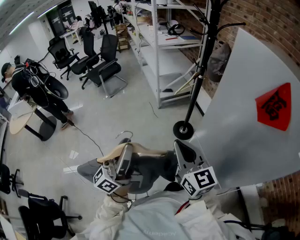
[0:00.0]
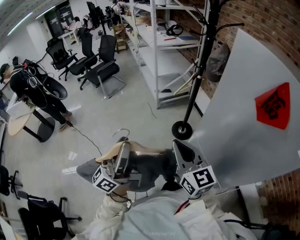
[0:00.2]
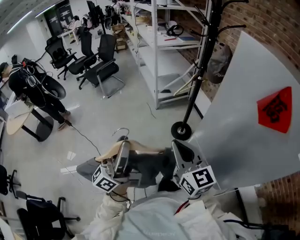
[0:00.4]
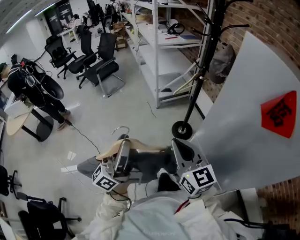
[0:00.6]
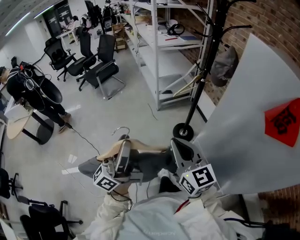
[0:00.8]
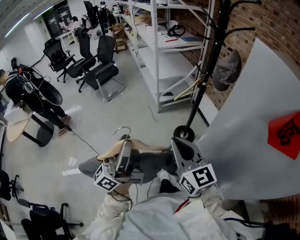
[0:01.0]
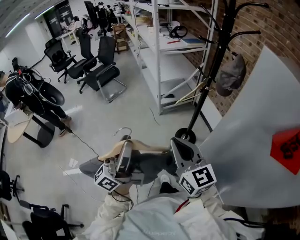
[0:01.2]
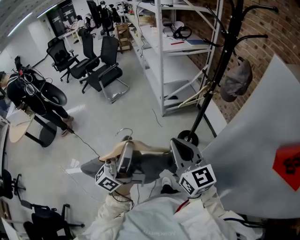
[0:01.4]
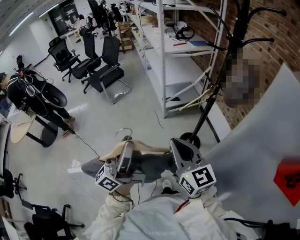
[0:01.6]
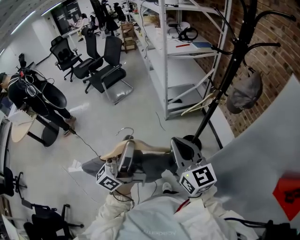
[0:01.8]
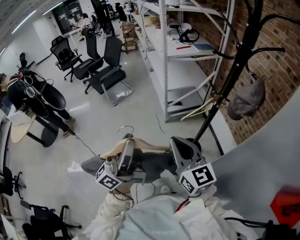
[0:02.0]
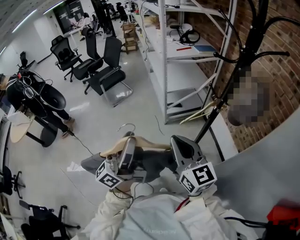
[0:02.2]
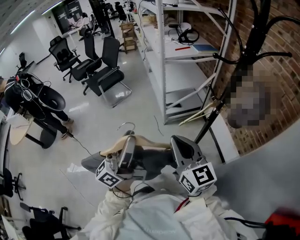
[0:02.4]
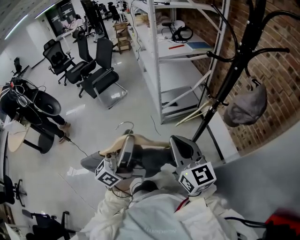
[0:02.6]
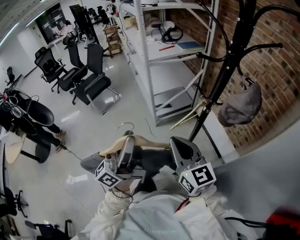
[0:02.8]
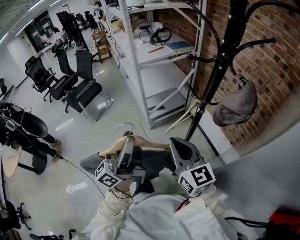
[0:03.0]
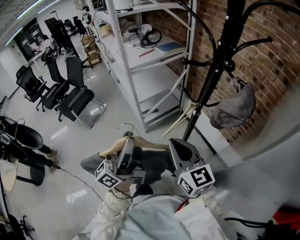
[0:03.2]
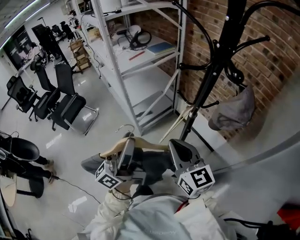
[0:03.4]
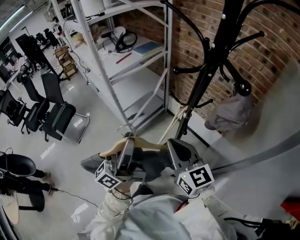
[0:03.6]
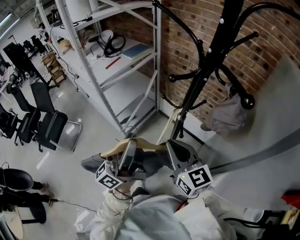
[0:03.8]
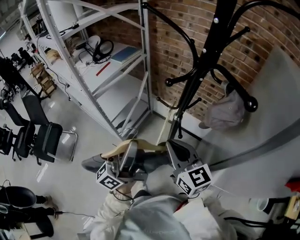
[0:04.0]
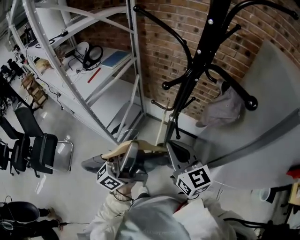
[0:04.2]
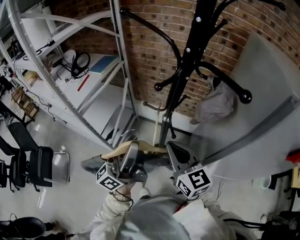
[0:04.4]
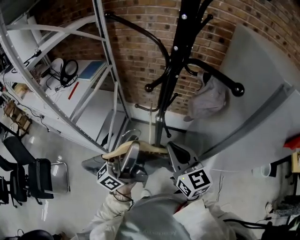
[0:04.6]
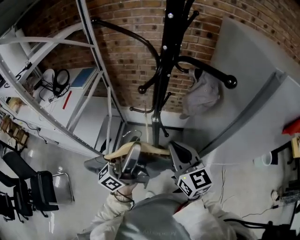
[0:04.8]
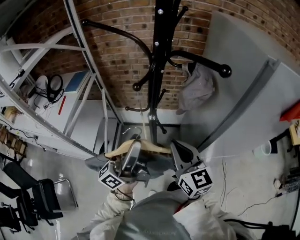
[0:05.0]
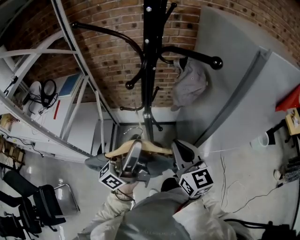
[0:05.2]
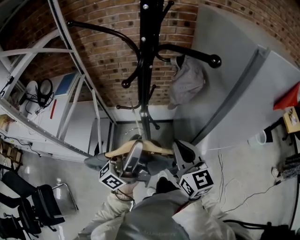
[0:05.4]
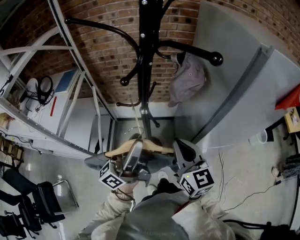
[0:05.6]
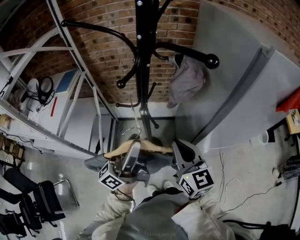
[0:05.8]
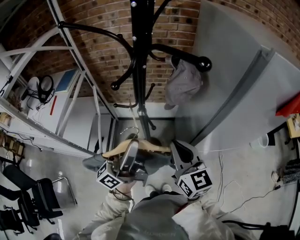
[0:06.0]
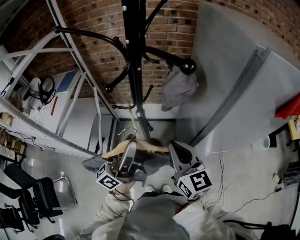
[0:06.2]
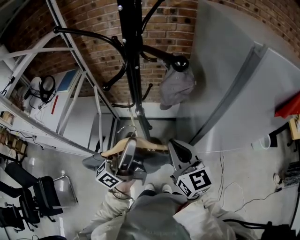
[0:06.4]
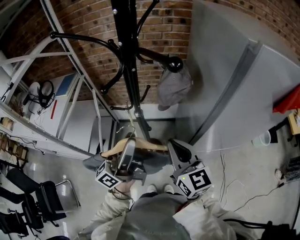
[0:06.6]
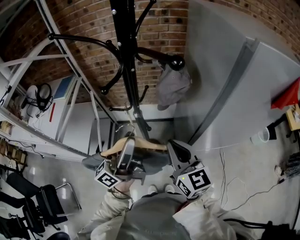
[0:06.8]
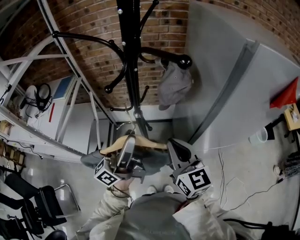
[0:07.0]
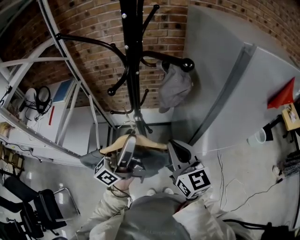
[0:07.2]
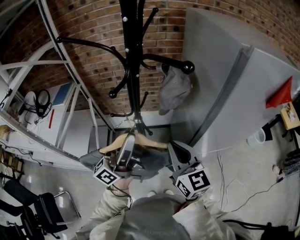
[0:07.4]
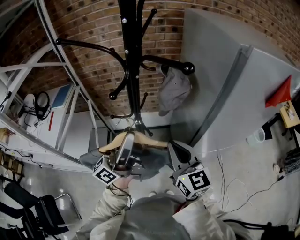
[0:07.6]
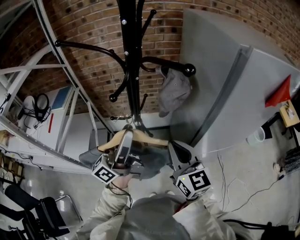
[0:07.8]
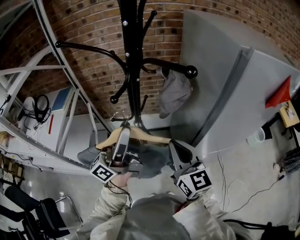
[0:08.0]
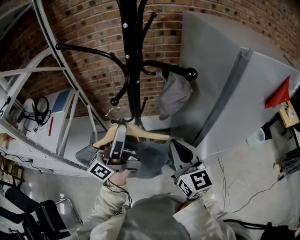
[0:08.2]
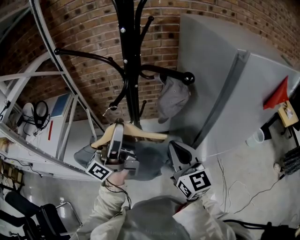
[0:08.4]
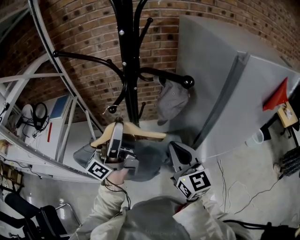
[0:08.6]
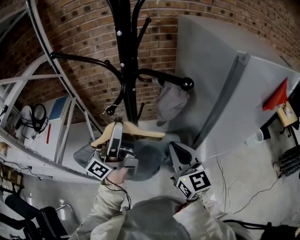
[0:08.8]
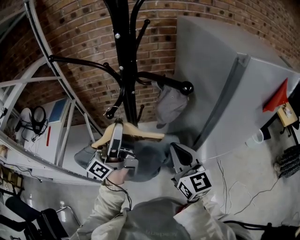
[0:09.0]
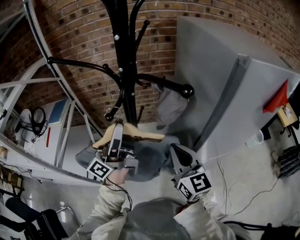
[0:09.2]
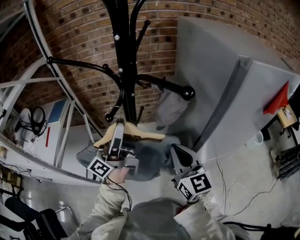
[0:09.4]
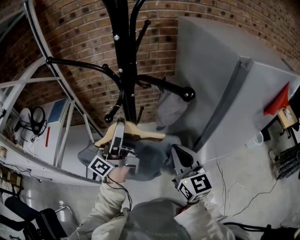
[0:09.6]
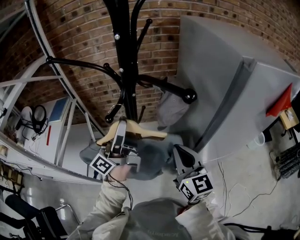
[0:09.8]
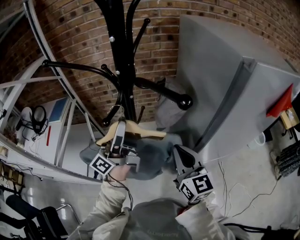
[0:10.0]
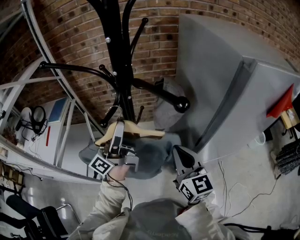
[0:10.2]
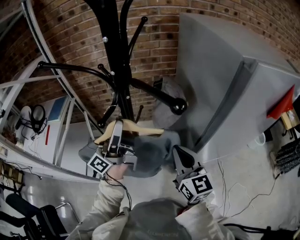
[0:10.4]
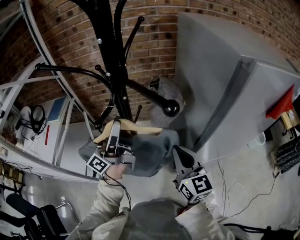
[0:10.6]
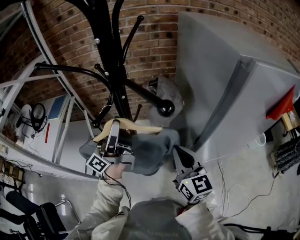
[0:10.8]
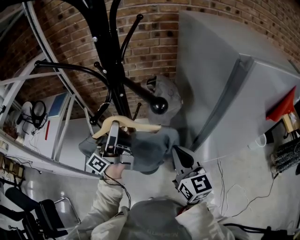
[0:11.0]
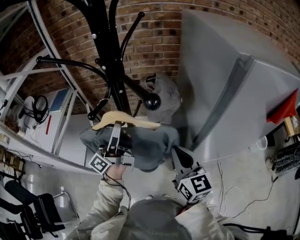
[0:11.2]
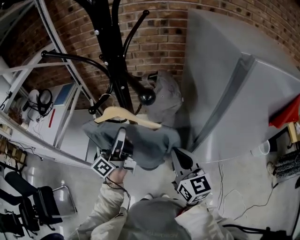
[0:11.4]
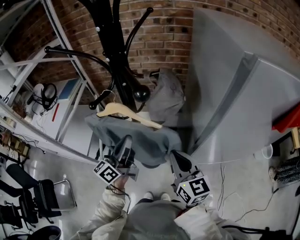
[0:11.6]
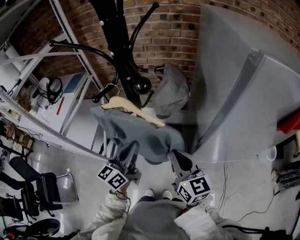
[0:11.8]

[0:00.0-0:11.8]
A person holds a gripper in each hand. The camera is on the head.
0:00.0 to 0:01.4: The two grippers go roughly 20 cm forward.
0:01.4 to 0:03.0: The two grippers go about 25 cm forward.
0:03.0 to 0:04.4: The left gripper ends up some 20 cm from where it was, and rotates roughly 40 degrees; the right gripper changes place by about 15 cm, and swivels roughly 40 degrees.
0:04.4 to 0:06.0: The right gripper changes place by roughly 10 cm, and swivels roughly 20 degrees, while the left gripper ends up about 5 cm from where it was, and rotates approximately 20 degrees.
0:06.0 to 0:07.4: There are only small adjustments of the grippers.
0:07.4 to 0:08.8: The left gripper shifts some 5 cm forward.
0:08.8 to 0:10.4: The left gripper moves forward, approximately 5 cm.
0:10.4 to 0:11.8: The right gripper heads downward, covering about 5 cm. Meanwhile the left gripper travels downward, backward and to the right by about 15 cm, tilts its fingers roughly 30 degrees downward, and closes its fingers.

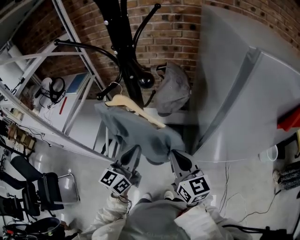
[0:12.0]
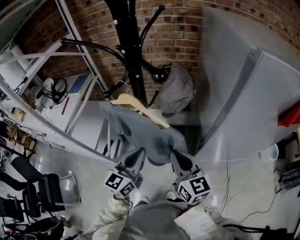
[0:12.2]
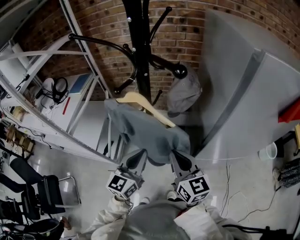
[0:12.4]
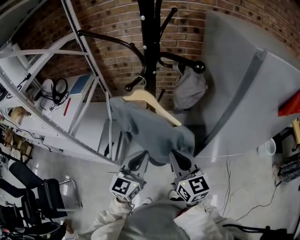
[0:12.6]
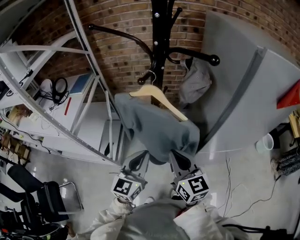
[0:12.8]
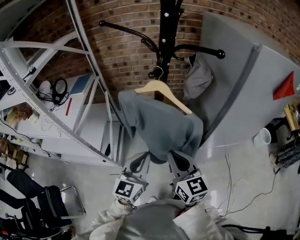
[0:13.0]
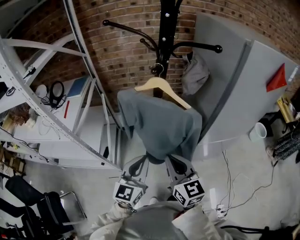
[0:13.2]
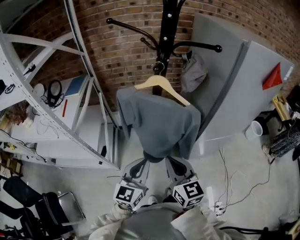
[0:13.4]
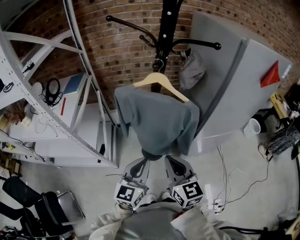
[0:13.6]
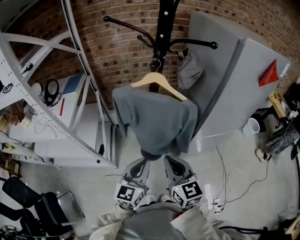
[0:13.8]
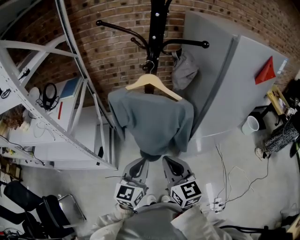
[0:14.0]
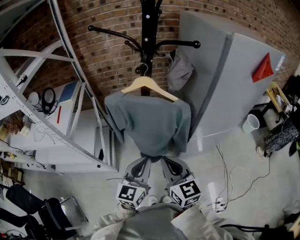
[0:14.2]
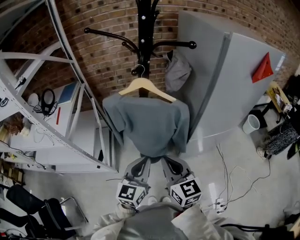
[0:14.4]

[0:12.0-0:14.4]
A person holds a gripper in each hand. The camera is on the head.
0:12.0 to 0:13.2: The right gripper heads to the left and backward, covering approximately 25 cm. Meanwhile the left gripper travels backward and to the left by roughly 20 cm.
0:13.2 to 0:14.4: The left gripper heads to the right, covering approximately 5 cm.

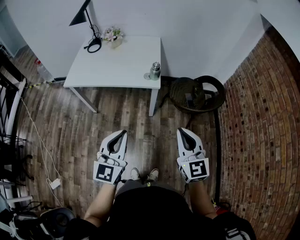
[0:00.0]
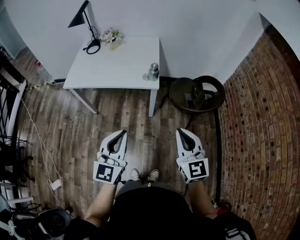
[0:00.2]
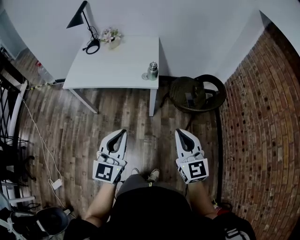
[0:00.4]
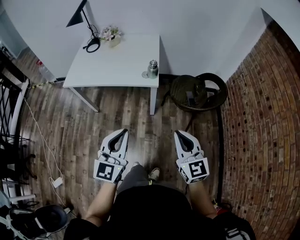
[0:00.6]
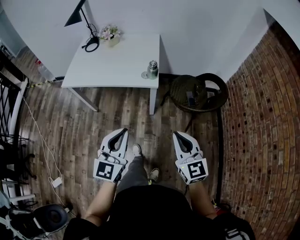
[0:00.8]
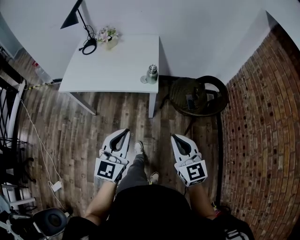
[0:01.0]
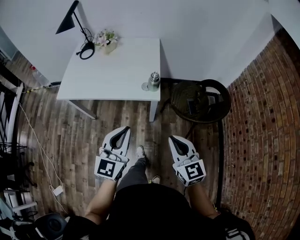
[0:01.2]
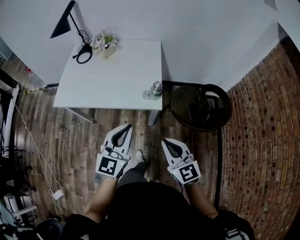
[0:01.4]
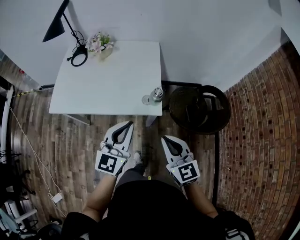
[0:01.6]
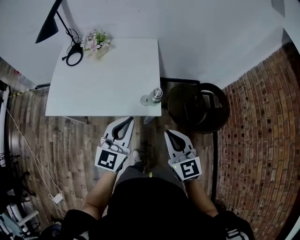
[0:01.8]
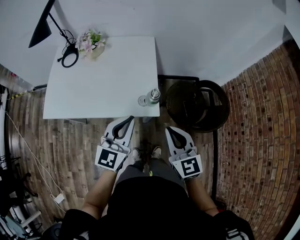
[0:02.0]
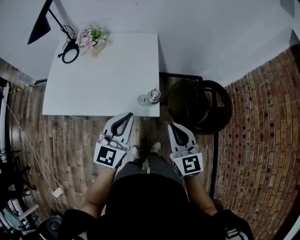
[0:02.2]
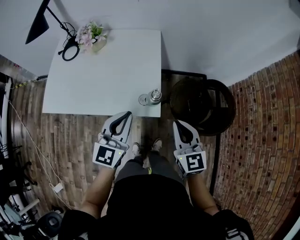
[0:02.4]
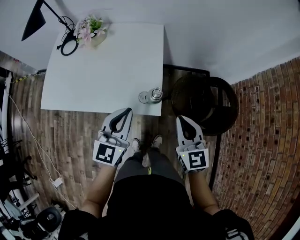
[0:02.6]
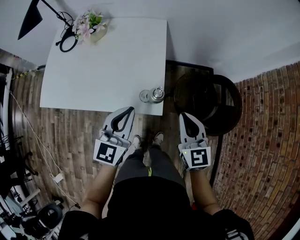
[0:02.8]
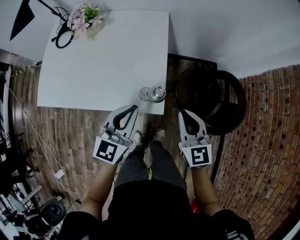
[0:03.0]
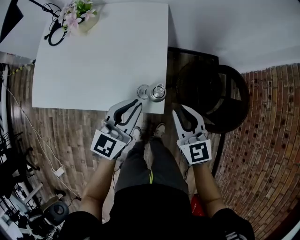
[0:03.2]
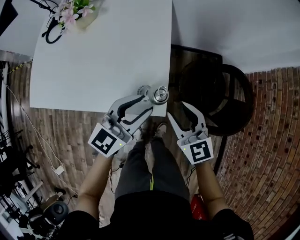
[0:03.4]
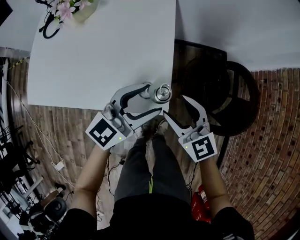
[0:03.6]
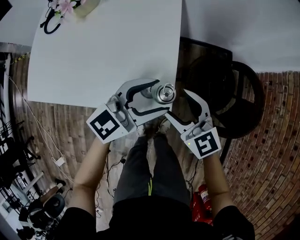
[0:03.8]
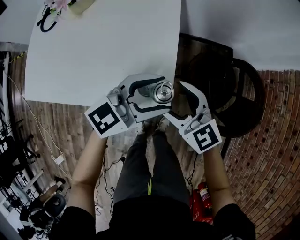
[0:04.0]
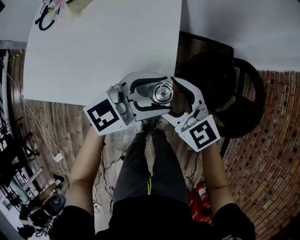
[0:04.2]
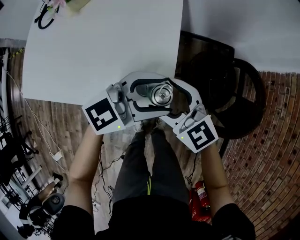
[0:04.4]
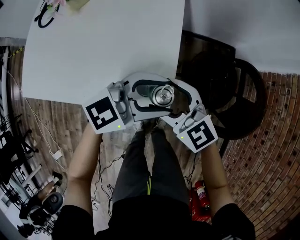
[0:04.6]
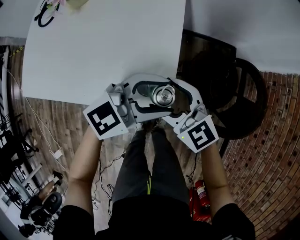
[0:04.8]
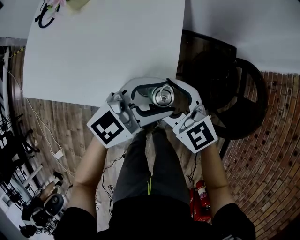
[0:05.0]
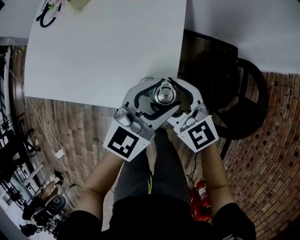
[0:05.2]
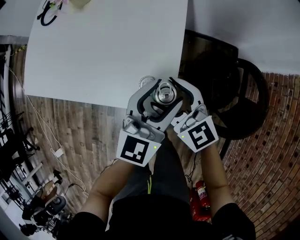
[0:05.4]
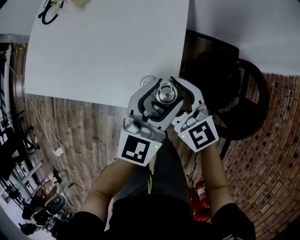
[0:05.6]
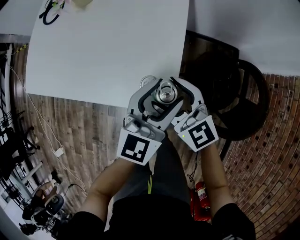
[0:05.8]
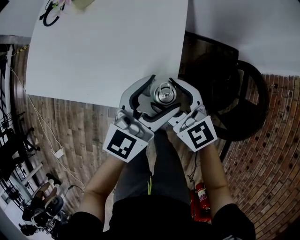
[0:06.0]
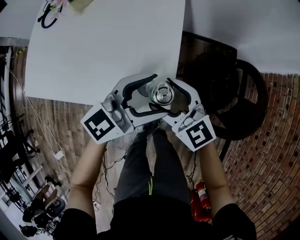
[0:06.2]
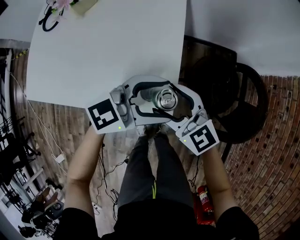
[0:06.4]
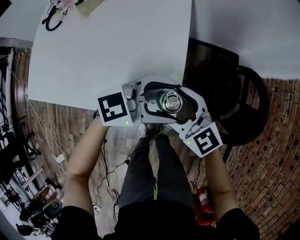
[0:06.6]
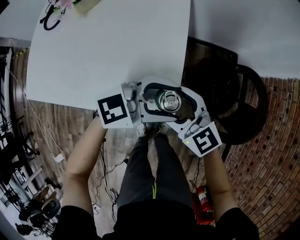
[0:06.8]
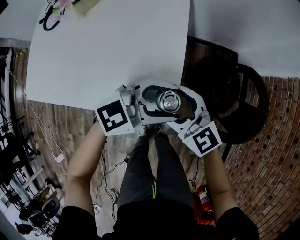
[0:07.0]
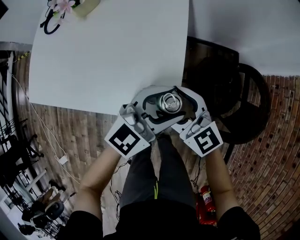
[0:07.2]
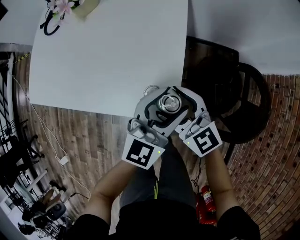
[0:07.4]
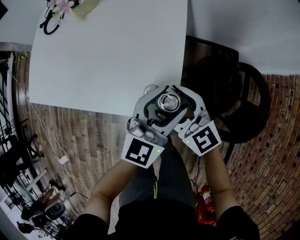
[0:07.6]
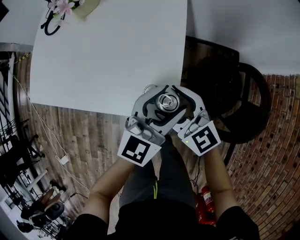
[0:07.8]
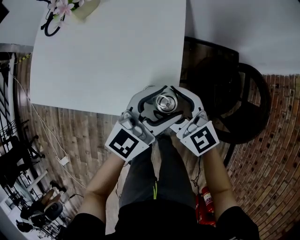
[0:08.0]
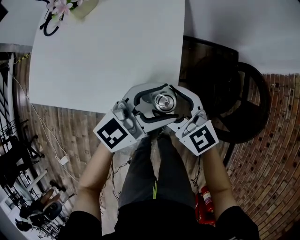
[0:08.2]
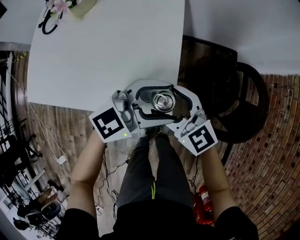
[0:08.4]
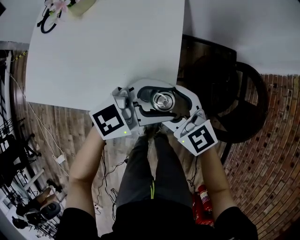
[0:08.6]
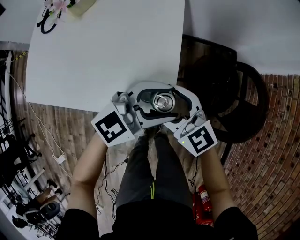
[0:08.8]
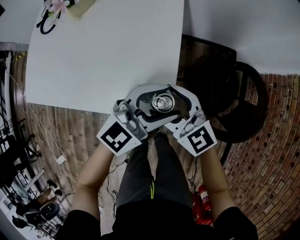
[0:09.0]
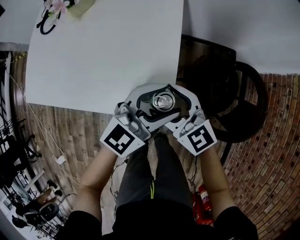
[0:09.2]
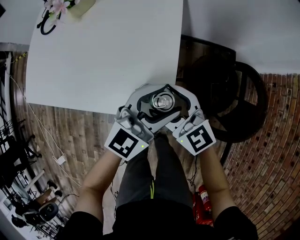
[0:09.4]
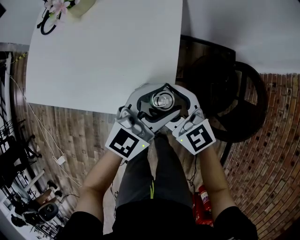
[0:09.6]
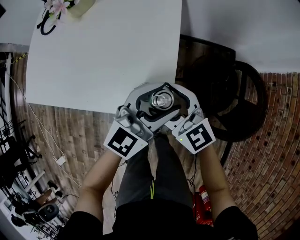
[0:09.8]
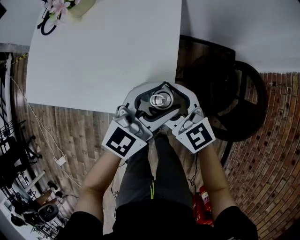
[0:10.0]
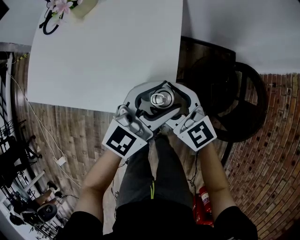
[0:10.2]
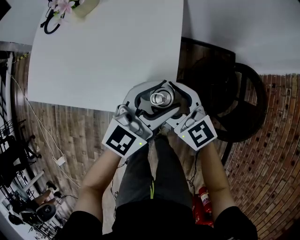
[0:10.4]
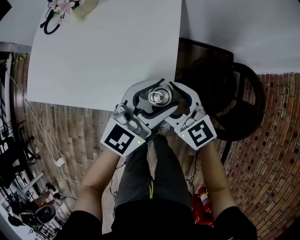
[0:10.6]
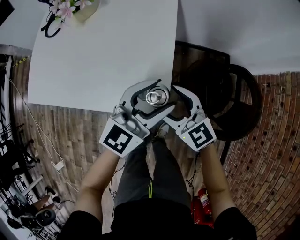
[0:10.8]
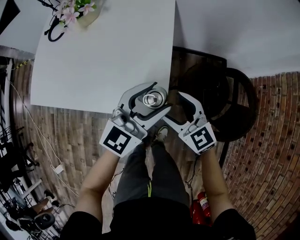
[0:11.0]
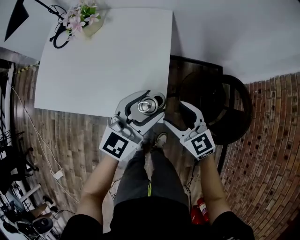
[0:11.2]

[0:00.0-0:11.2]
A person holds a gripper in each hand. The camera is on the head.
0:00.0 to 0:01.6: Both grippers move forward, roughly 25 cm.
0:01.6 to 0:03.2: Both grippers move forward and downward, about 20 cm.
0:03.2 to 0:04.8: The right gripper ends up roughly 10 cm from where it was, changes its angle by approximately 30 degrees, and opens. Meanwhile the left gripper ends up about 10 cm from where it was, rotates approximately 40 degrees, and opens its fingers.
0:06.4 to 0:08.0: The left gripper changes its angle by some 30 degrees.
0:09.6 to 0:11.2: The right gripper goes about 5 cm to the right, while the left gripper goes some 5 cm upward.
